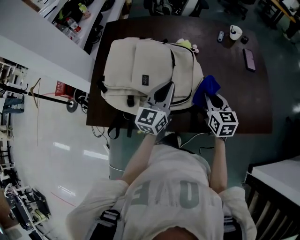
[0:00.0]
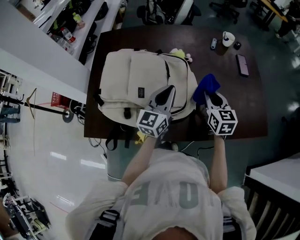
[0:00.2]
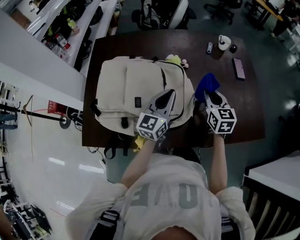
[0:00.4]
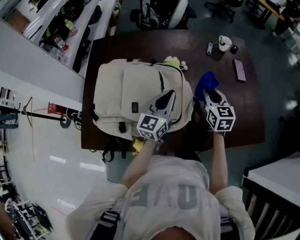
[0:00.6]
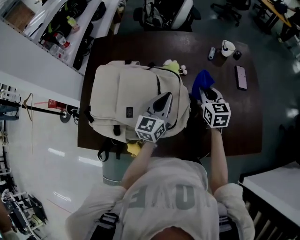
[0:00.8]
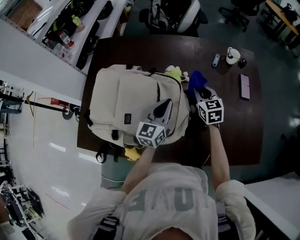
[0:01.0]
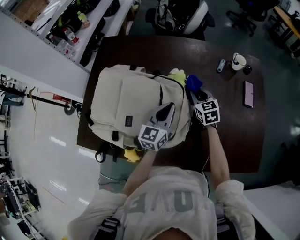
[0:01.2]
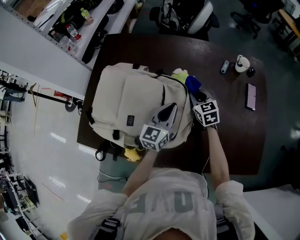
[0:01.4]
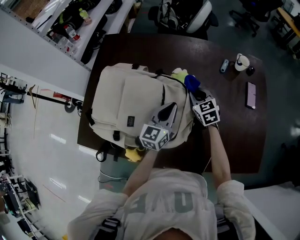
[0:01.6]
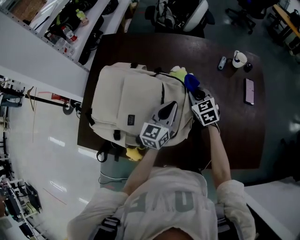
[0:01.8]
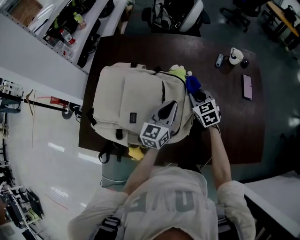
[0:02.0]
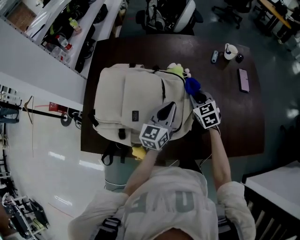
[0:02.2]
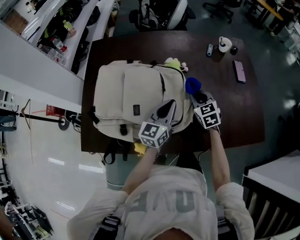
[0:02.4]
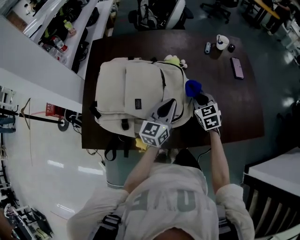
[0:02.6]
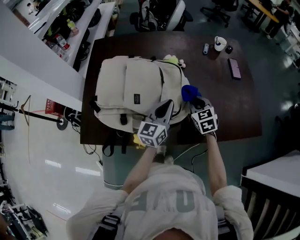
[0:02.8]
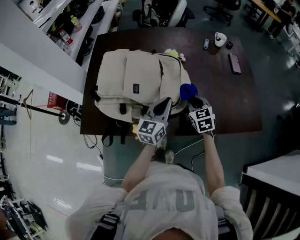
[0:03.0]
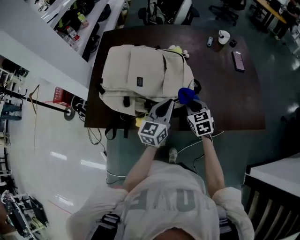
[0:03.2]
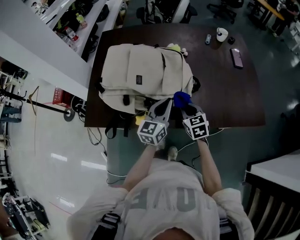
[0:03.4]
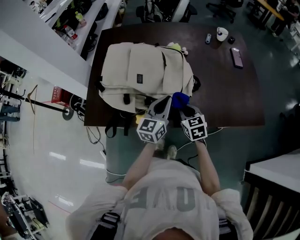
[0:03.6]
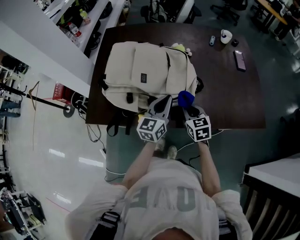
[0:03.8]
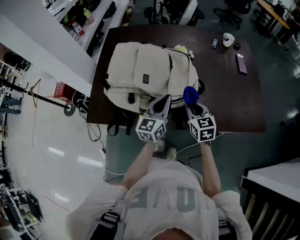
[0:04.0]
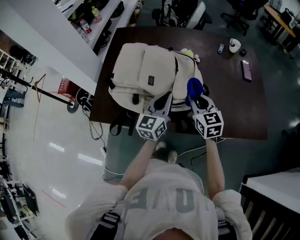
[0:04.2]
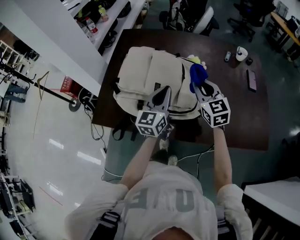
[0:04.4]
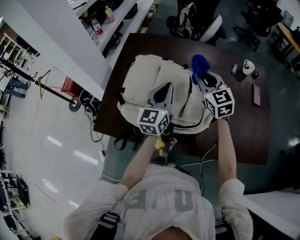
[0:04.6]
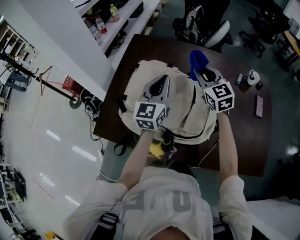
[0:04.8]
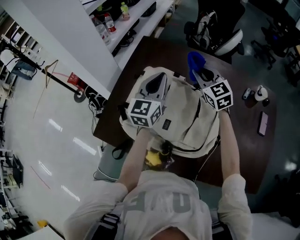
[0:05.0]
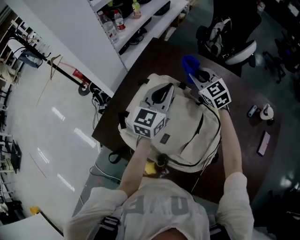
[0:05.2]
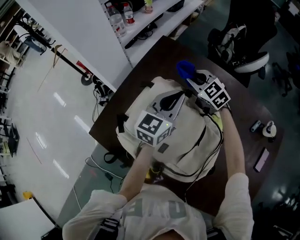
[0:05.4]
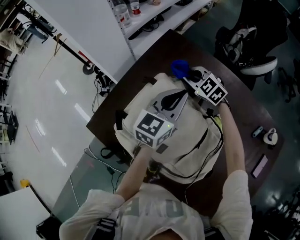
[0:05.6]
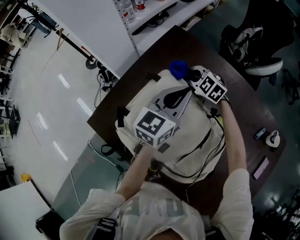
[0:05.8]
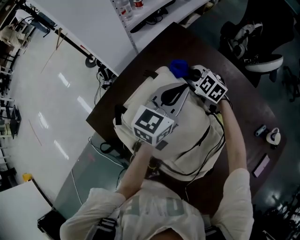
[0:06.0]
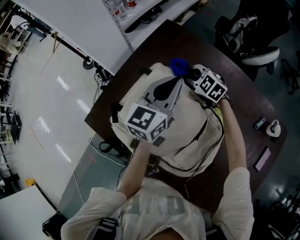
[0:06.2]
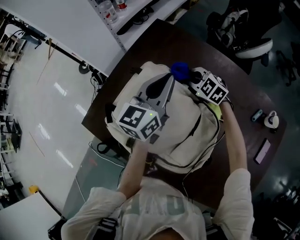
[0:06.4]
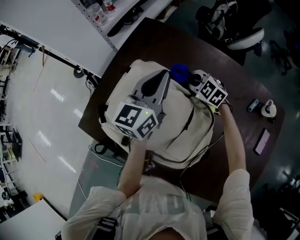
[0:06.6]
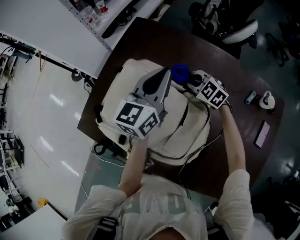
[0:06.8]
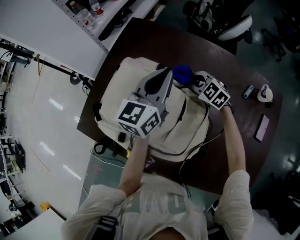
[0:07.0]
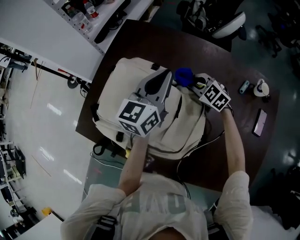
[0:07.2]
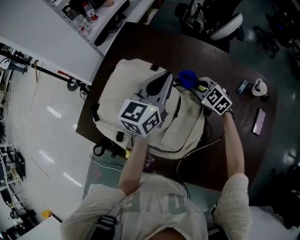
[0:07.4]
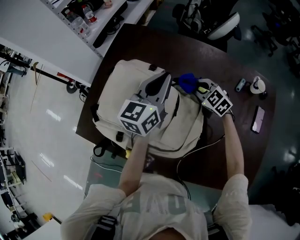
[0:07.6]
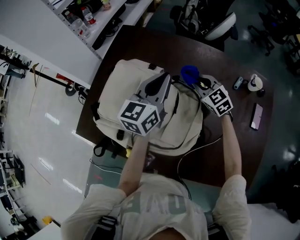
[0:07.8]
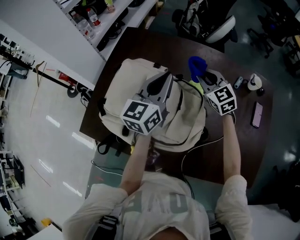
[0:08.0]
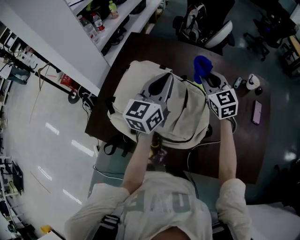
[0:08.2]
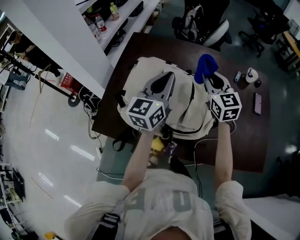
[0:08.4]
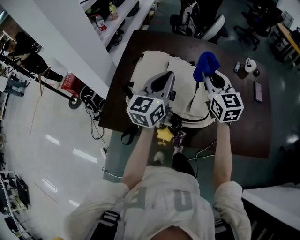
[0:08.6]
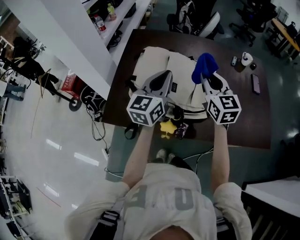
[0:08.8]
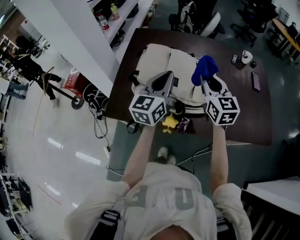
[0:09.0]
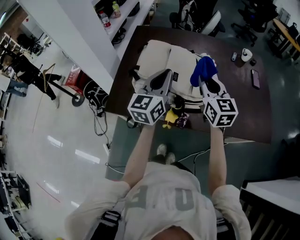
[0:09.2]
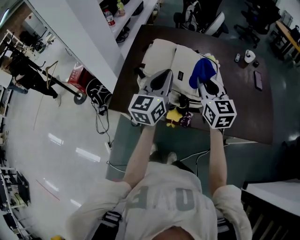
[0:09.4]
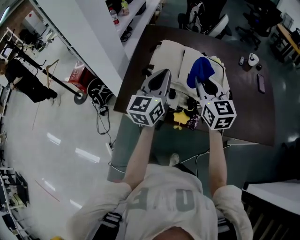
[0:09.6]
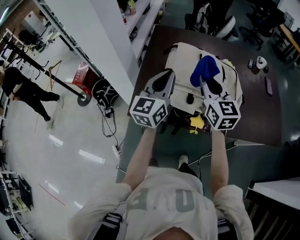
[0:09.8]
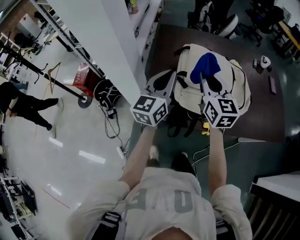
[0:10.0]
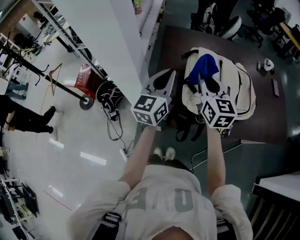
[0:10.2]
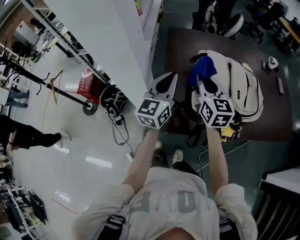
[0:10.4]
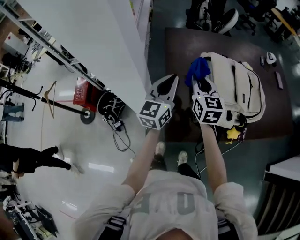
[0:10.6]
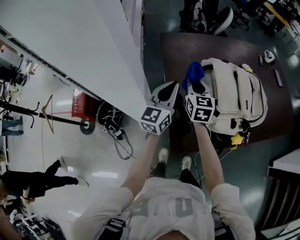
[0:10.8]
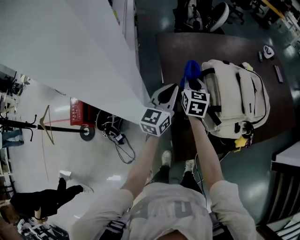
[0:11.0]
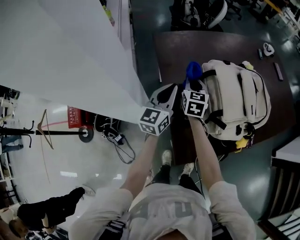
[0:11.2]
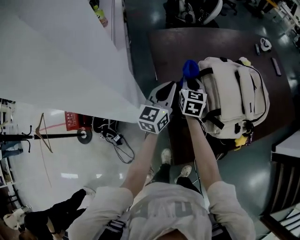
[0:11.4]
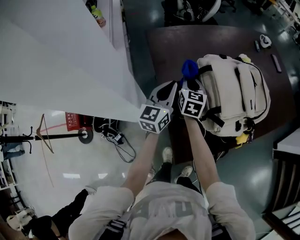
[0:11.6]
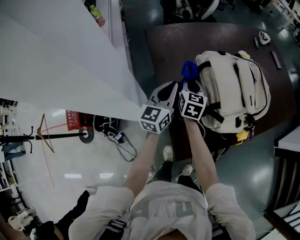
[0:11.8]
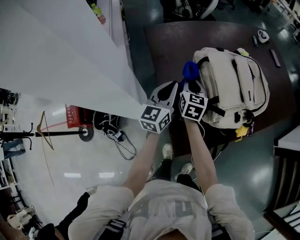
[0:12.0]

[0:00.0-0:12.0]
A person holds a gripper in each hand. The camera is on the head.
0:00.0 to 0:01.6: The left gripper shifts approximately 10 cm forward. Meanwhile the right gripper is displaced forward by some 20 cm, and turns by some 30 degrees.
0:01.6 to 0:03.0: Both grippers travel together backward, roughly 20 cm.
0:03.0 to 0:04.4: The right gripper shifts some 15 cm upward and to the left, and rotates roughly 20 degrees. The left gripper goes some 10 cm to the left and upward.
0:04.4 to 0:06.0: The right gripper changes place by approximately 40 cm, and changes its angle by approximately 70 degrees. Meanwhile the left gripper moves roughly 25 cm.
0:06.0 to 0:07.6: The right gripper heads to the right and backward, covering about 25 cm, and changes its angle by approximately 30 degrees; the left gripper shifts some 10 cm backward and to the right.
0:07.6 to 0:09.0: The left gripper heads backward and to the left, covering some 25 cm. Meanwhile the right gripper is displaced backward and upward by approximately 30 cm, and angles its fingers upward, by roughly 30 degrees.
0:09.0 to 0:10.4: The two grippers go about 30 cm to the left.
0:10.4 to 0:12.0: Both grippers move downward, about 15 cm. The left gripper turns by about 20 degrees; the right gripper rotates approximately 40 degrees.

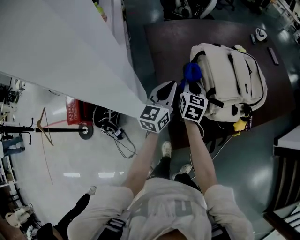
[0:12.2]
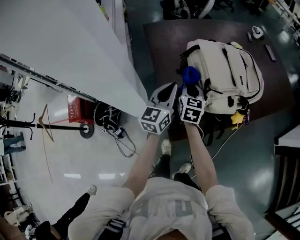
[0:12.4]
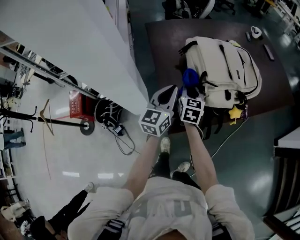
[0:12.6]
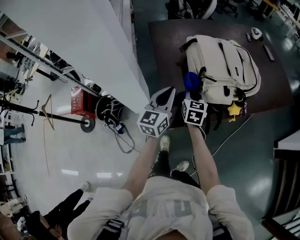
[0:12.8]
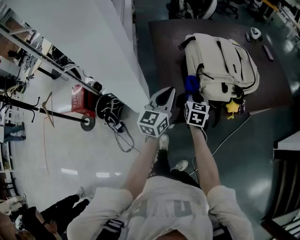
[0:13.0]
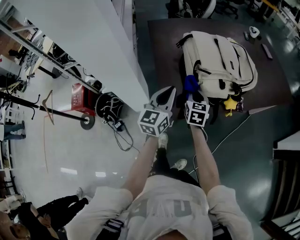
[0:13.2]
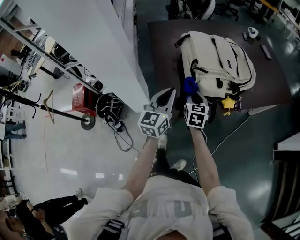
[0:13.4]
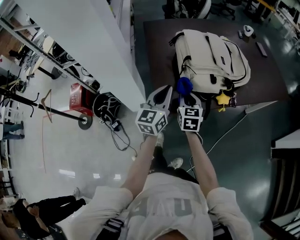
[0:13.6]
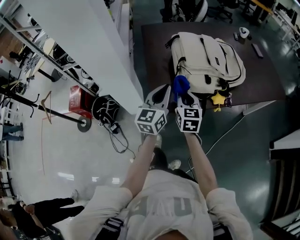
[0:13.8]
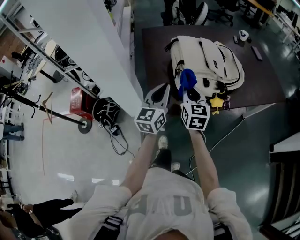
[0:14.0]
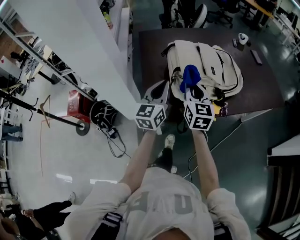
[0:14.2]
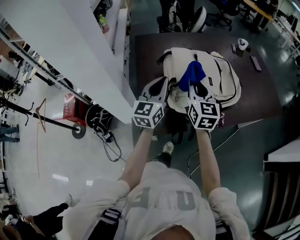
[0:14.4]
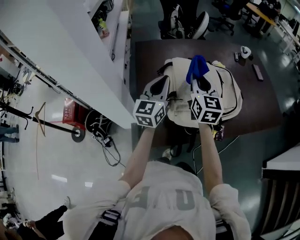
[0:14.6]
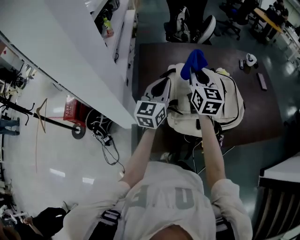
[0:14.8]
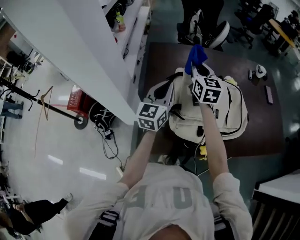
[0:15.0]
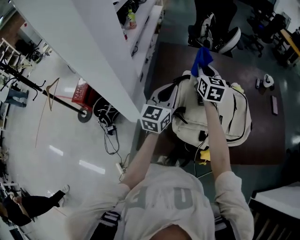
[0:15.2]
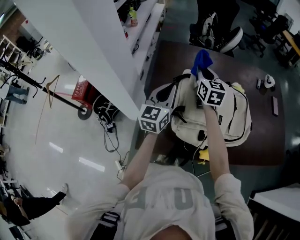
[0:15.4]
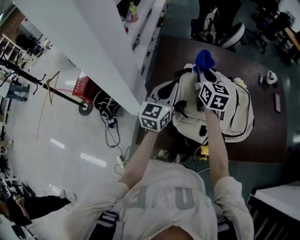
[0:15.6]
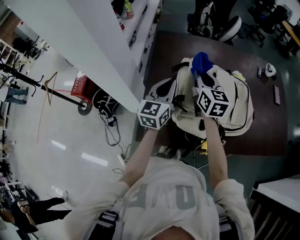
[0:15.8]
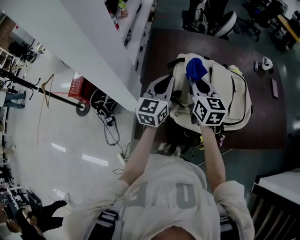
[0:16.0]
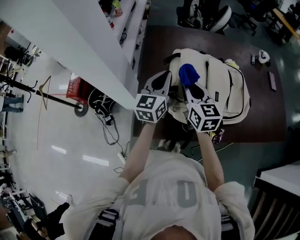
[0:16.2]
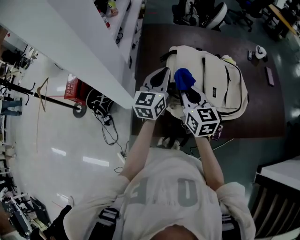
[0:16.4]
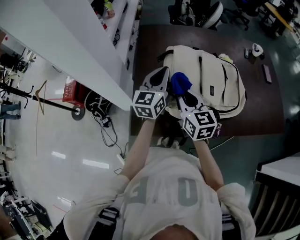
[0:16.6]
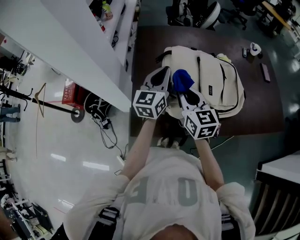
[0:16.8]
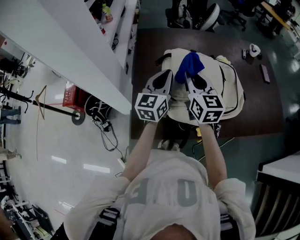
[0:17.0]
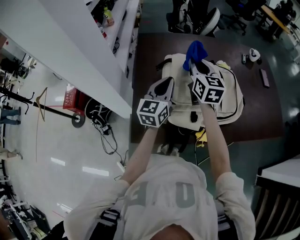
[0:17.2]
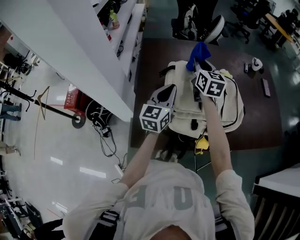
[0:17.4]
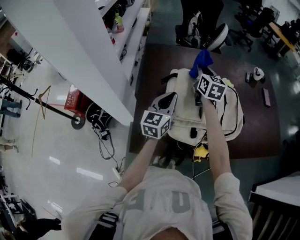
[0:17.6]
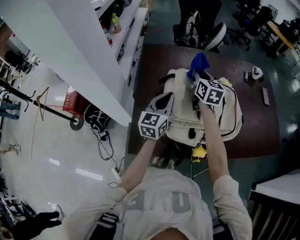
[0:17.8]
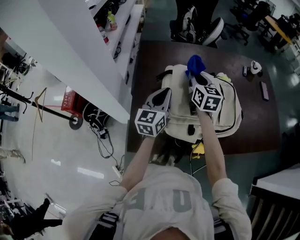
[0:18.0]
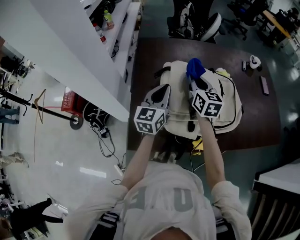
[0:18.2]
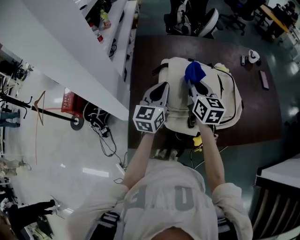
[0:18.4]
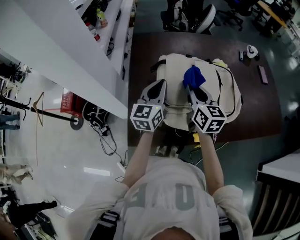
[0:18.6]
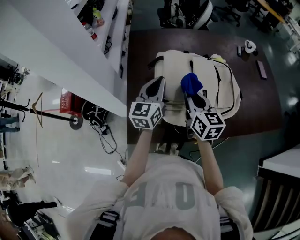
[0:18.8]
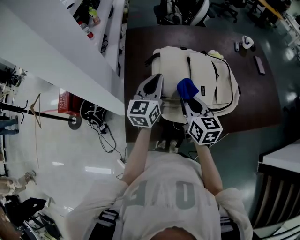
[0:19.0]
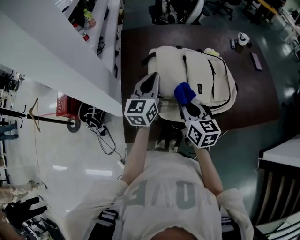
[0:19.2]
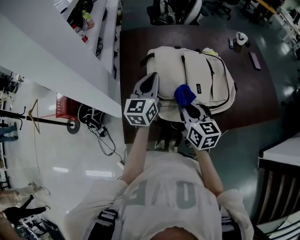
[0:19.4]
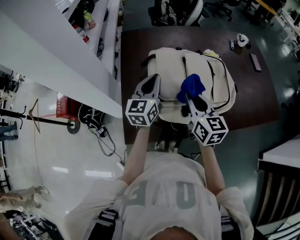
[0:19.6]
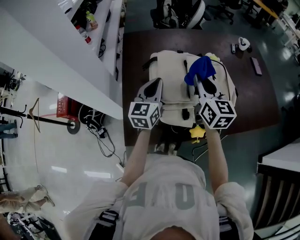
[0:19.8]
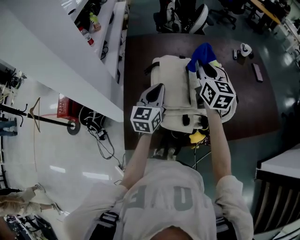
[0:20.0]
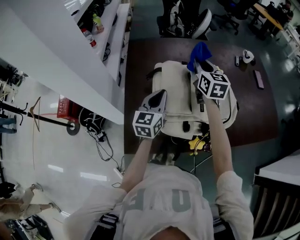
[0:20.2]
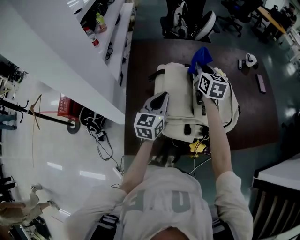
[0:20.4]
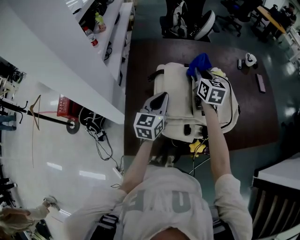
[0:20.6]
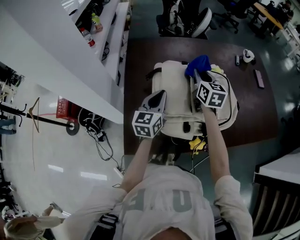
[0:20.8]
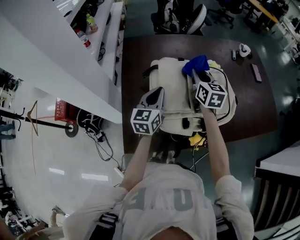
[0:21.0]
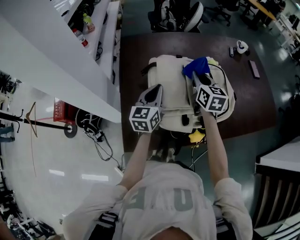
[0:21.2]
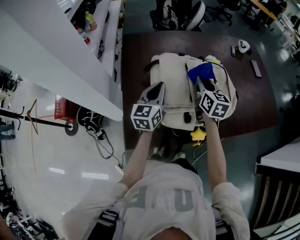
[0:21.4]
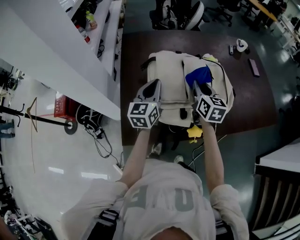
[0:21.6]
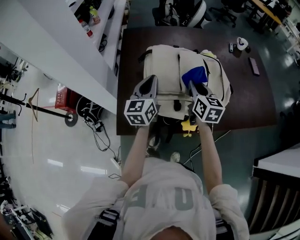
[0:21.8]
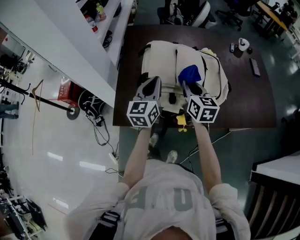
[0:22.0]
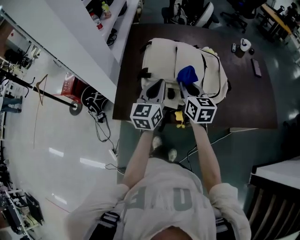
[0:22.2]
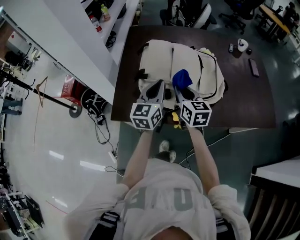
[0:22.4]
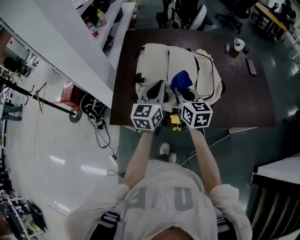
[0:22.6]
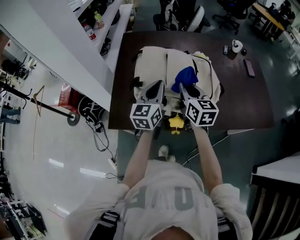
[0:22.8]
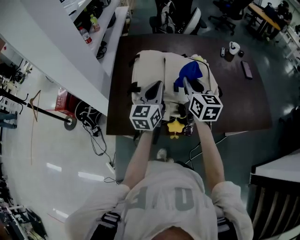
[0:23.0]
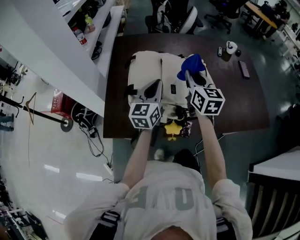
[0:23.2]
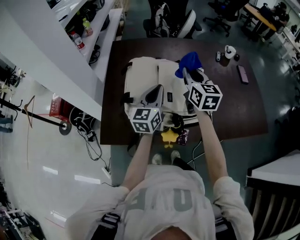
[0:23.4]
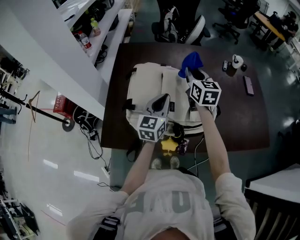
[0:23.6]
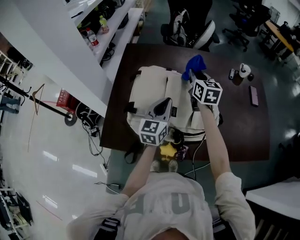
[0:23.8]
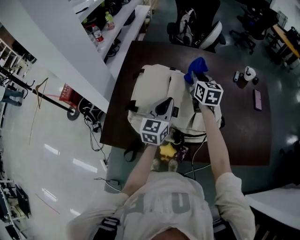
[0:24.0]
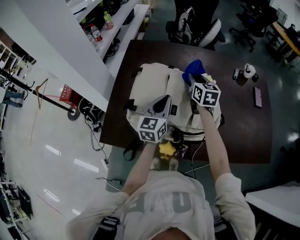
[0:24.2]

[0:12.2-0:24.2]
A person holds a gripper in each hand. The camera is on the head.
0:12.2 to 0:13.8: The grippers both shift backward and to the right by about 25 cm.
0:13.8 to 0:15.2: The right gripper is displaced forward by approximately 35 cm. The left gripper goes approximately 25 cm forward.
0:15.2 to 0:16.6: The right gripper is displaced backward by approximately 25 cm.
0:16.6 to 0:18.2: The right gripper shifts some 15 cm forward and to the right.
0:18.2 to 0:19.8: The right gripper is displaced backward and to the right by approximately 10 cm.
0:19.8 to 0:21.2: The right gripper travels forward and downward by approximately 10 cm.
0:21.2 to 0:22.6: The right gripper shifts roughly 15 cm backward. The left gripper travels backward and to the right by some 15 cm.
0:22.6 to 0:24.2: The left gripper heads forward, covering about 10 cm, while the right gripper heads forward, covering approximately 25 cm.
